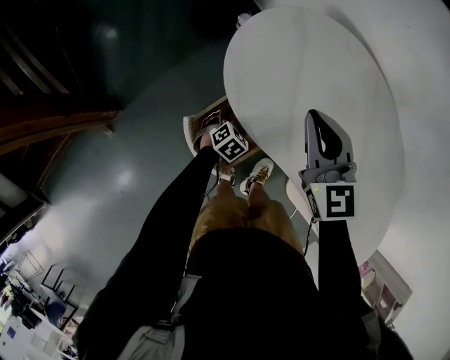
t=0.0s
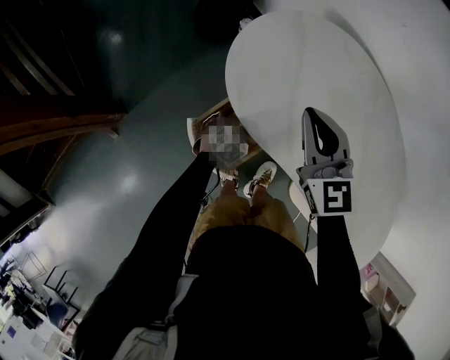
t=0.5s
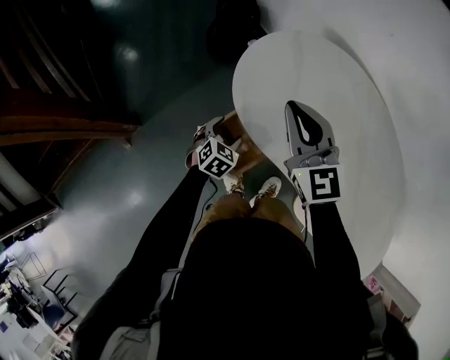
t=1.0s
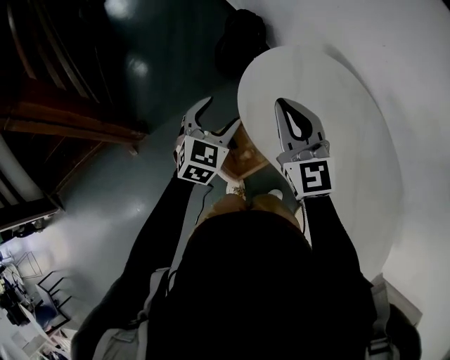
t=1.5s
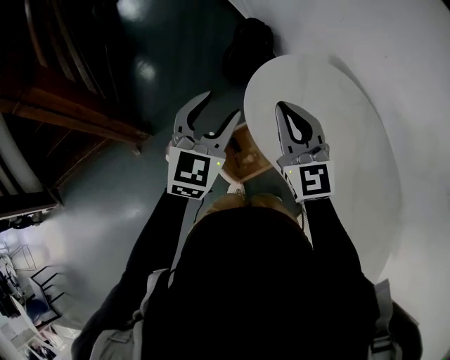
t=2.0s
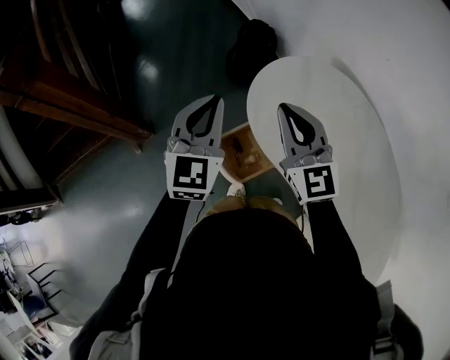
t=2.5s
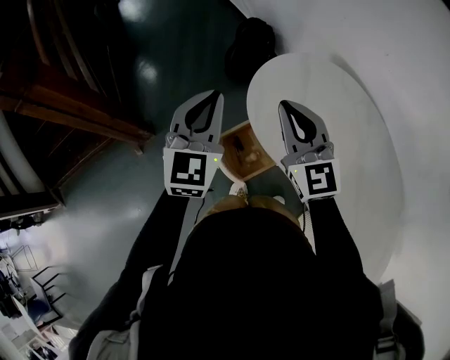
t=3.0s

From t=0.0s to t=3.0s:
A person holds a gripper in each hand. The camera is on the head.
From t=0.0s to t=1.5s: The left gripper travels upward by roughly 30 cm, and angles its fingers upward, by about 30 degrees, while the right gripper travels upward and to the left by roughly 10 cm.
From t=1.5s to t=3.0s: The left gripper goes about 15 cm upward, changes its angle by about 20 degrees, and closes up.

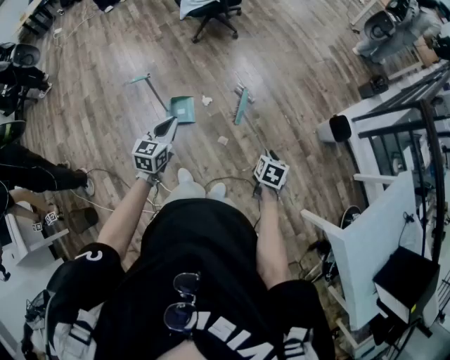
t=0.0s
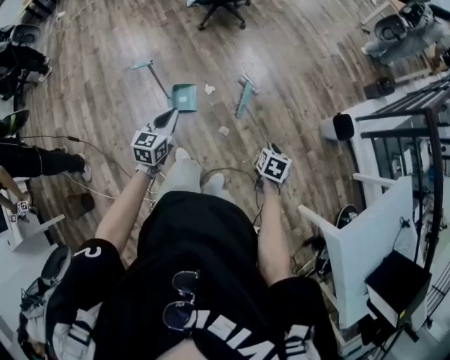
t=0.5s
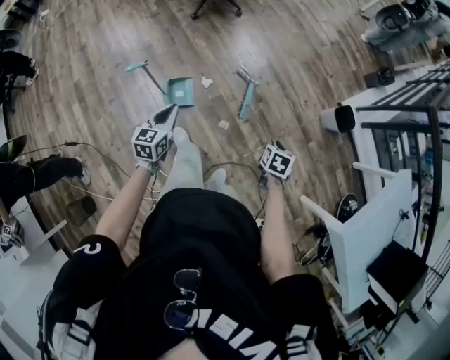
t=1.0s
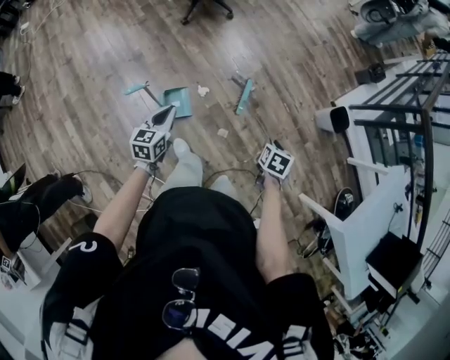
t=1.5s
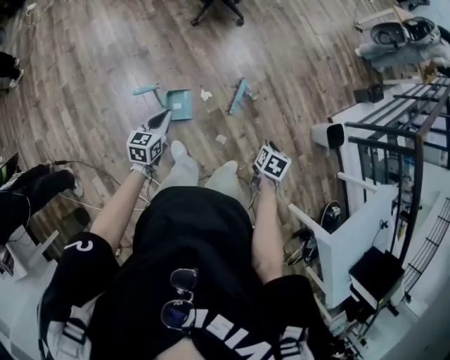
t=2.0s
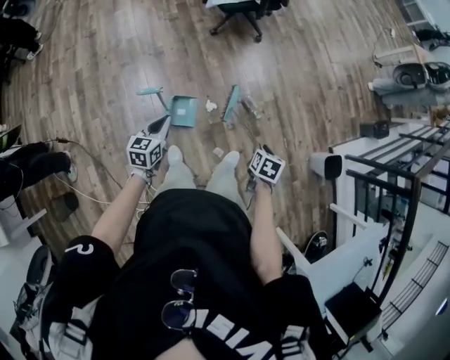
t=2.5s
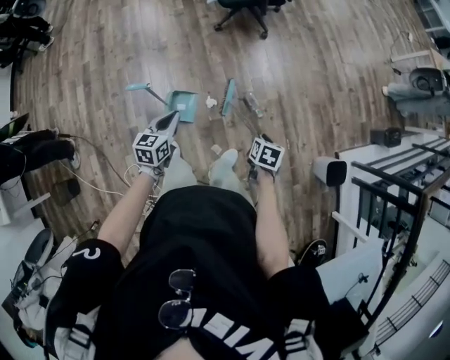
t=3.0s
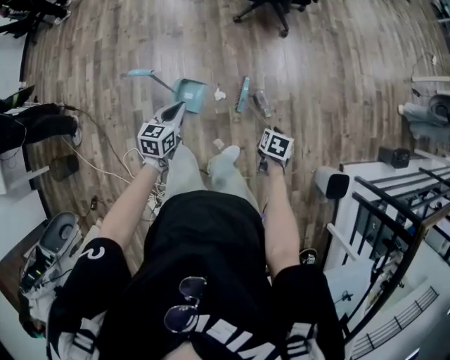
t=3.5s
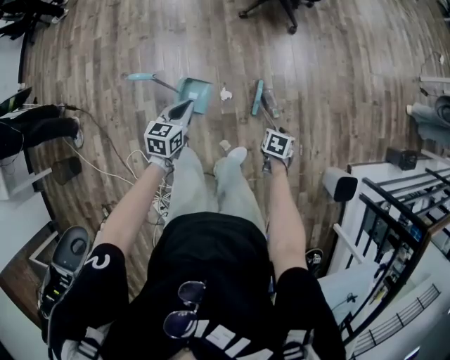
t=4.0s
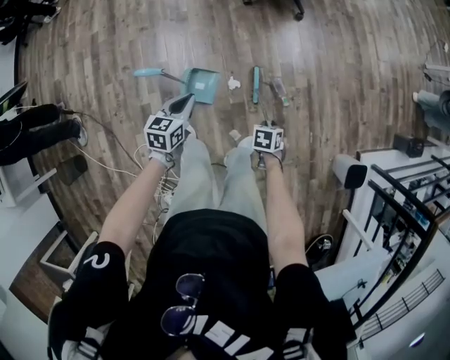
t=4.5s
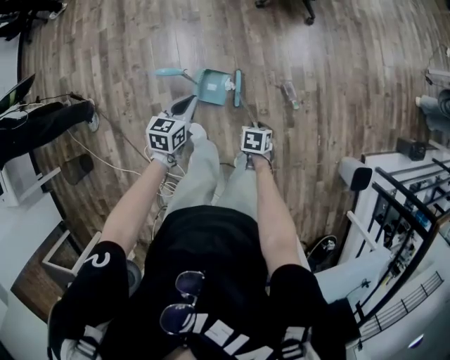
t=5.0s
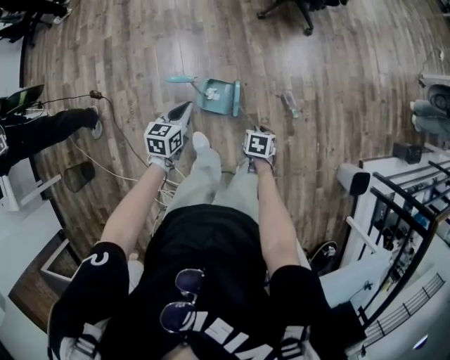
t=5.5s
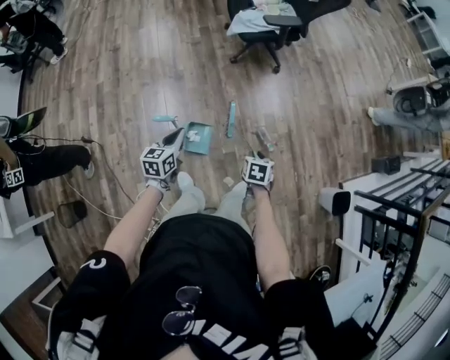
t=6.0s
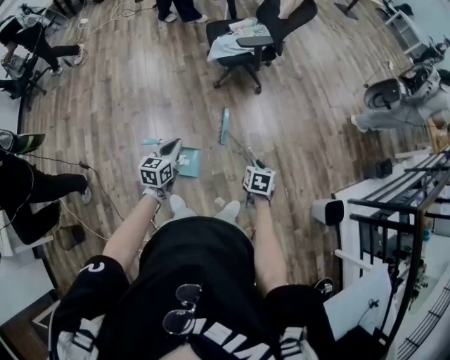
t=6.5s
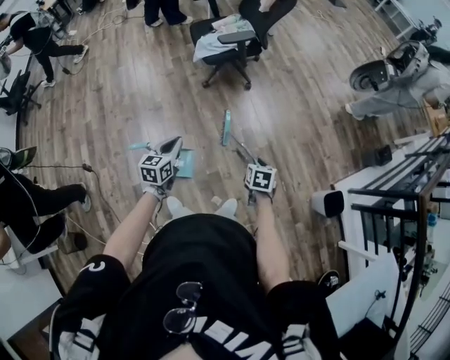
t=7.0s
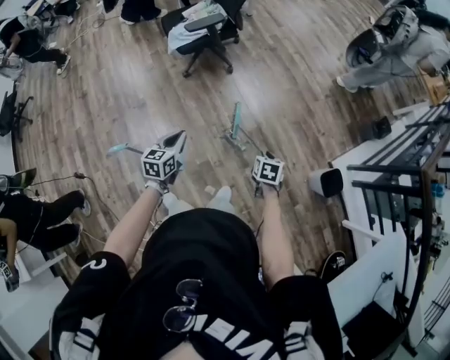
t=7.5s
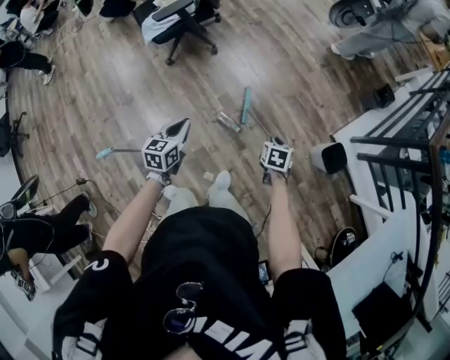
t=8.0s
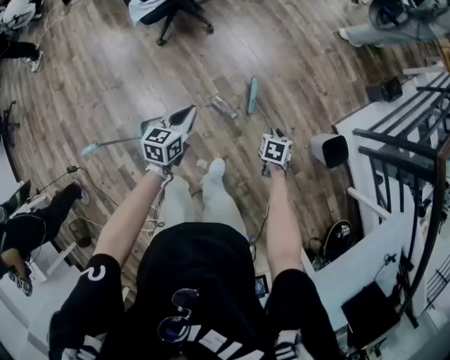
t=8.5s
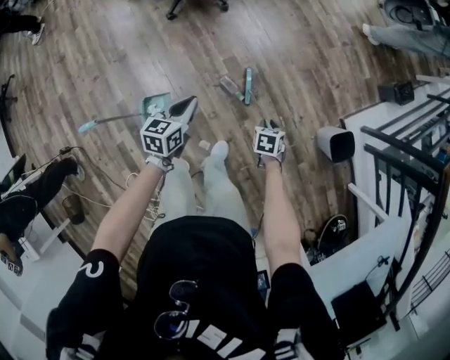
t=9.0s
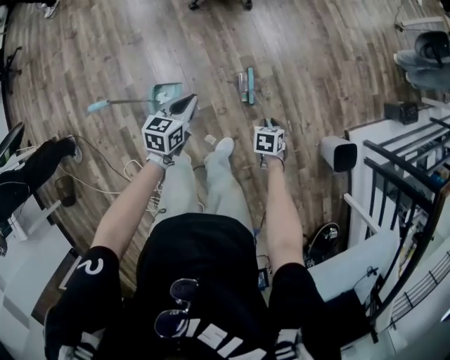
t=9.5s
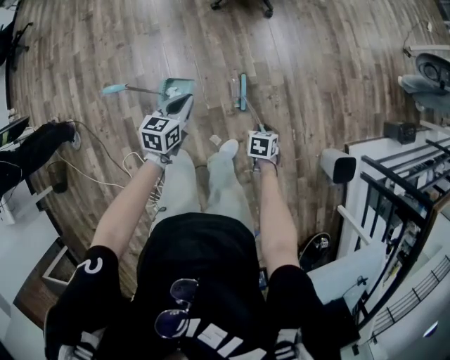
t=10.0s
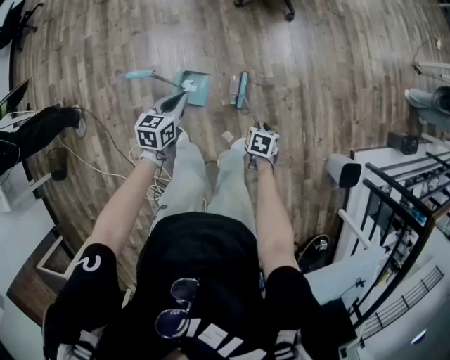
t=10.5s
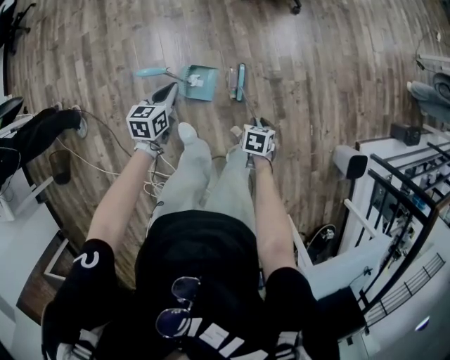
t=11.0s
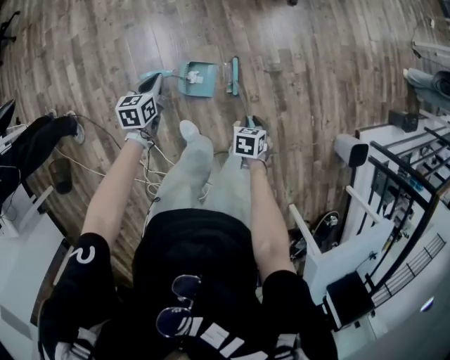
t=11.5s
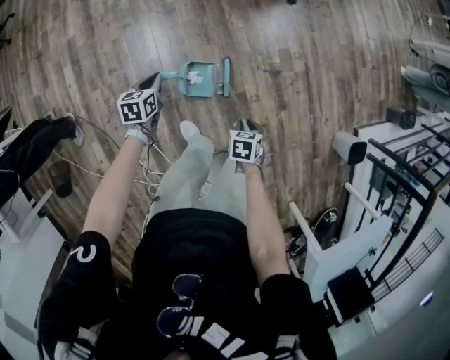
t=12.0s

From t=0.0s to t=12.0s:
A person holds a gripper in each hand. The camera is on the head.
From t=0.0s to t=2.0s: The left gripper heads to the left, forward and downward, covering some 30 cm. Meanwhile the right gripper goes about 25 cm to the left and forward.
From t=2.0s to t=4.0s: The right gripper changes place by some 30 cm, and turns by roughly 30 degrees. The left gripper shifts by approximately 20 cm.
From t=4.0s to t=6.0s: The right gripper moves approximately 20 cm. The left gripper moves approximately 15 cm.
From t=6.0s to t=8.0s: The pair of grippers is taken to the right, approximately 40 cm. The left gripper changes its angle by about 20 degrees. The right gripper turns by some 20 degrees.
From t=8.0s to t=10.0s: The grippers both shift to the left, downward and backward by some 25 cm. The right gripper changes its angle by approximately 30 degrees.
From t=10.0s to t=12.0s: The grippers both shift to the left by roughly 35 cm.

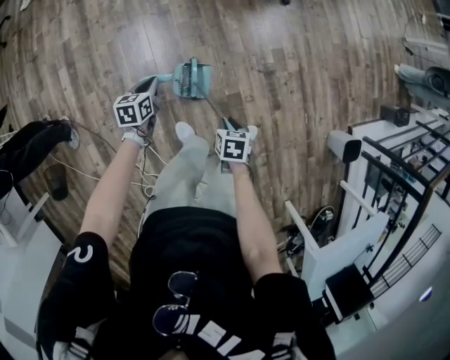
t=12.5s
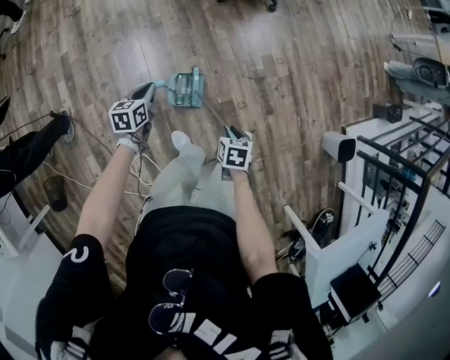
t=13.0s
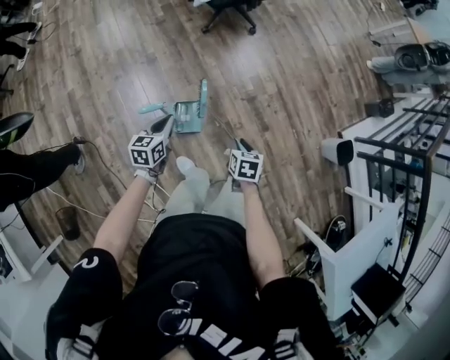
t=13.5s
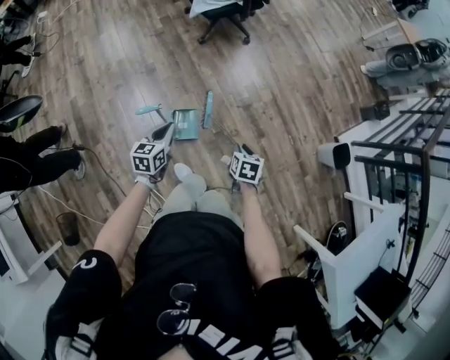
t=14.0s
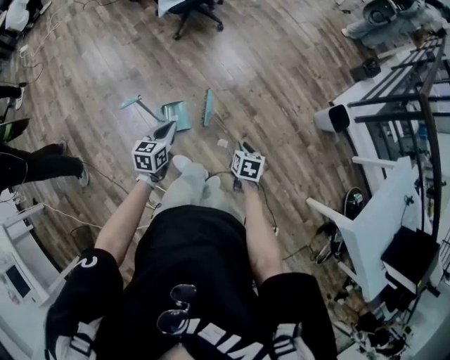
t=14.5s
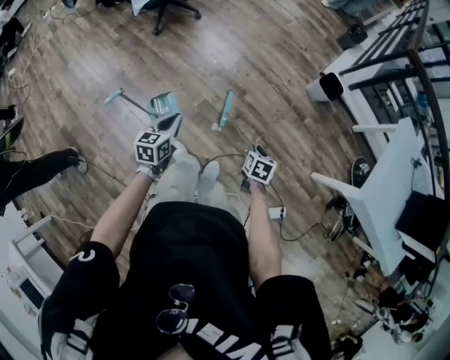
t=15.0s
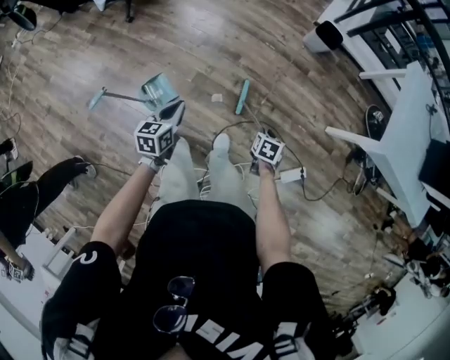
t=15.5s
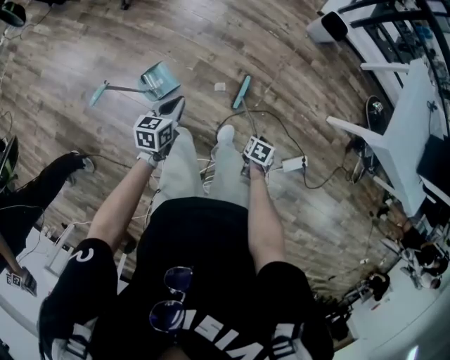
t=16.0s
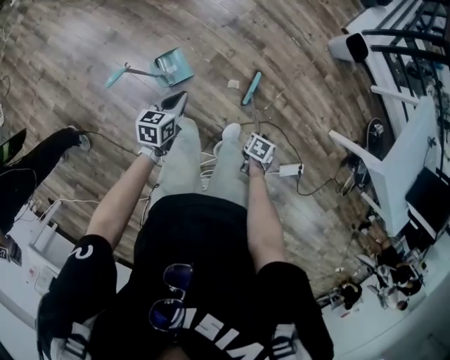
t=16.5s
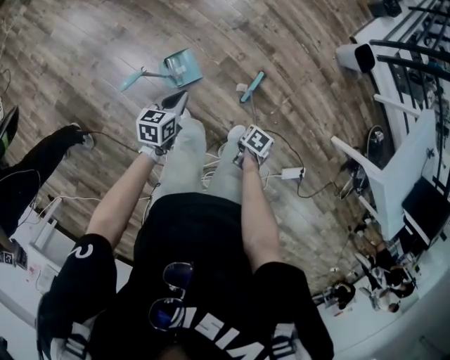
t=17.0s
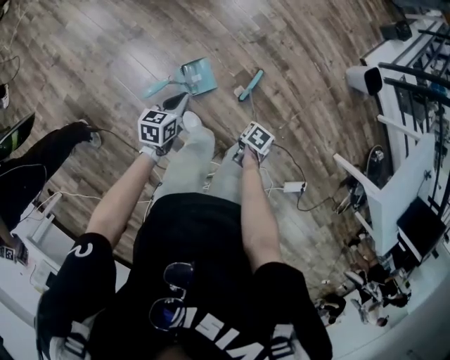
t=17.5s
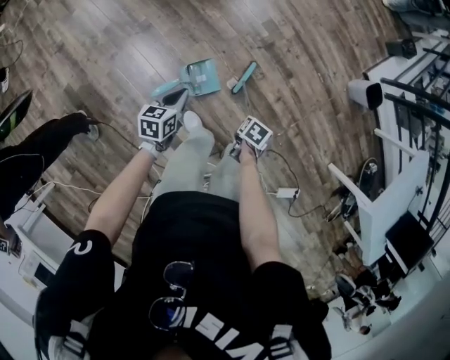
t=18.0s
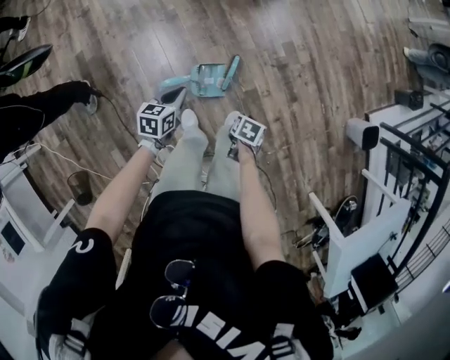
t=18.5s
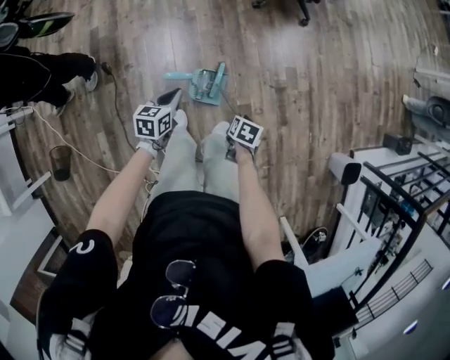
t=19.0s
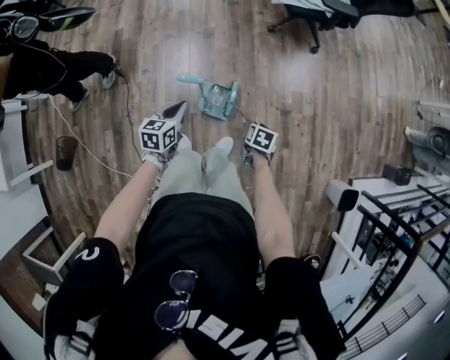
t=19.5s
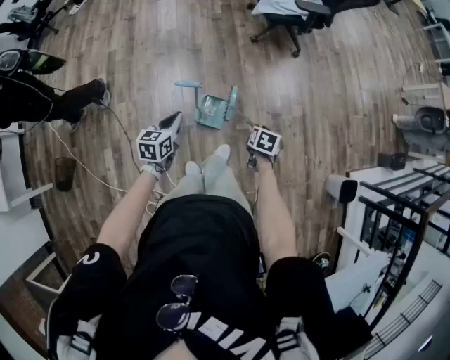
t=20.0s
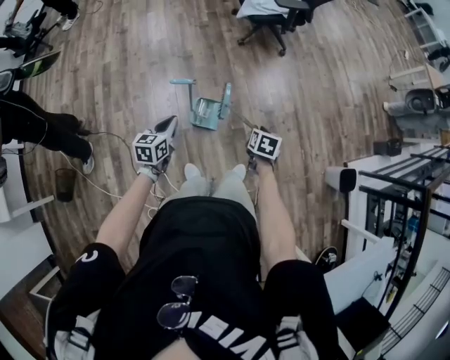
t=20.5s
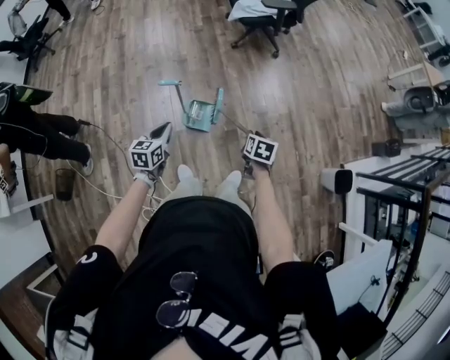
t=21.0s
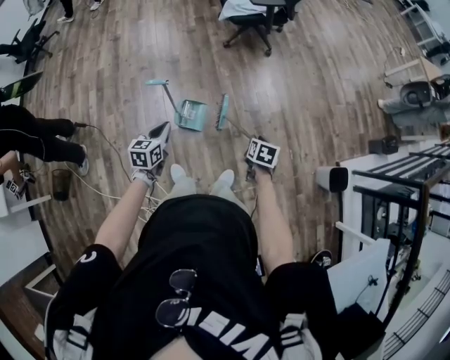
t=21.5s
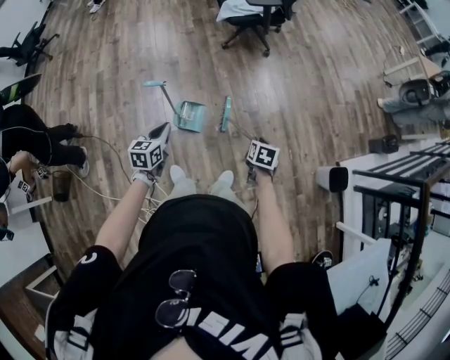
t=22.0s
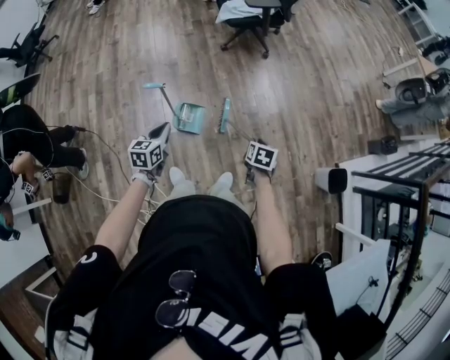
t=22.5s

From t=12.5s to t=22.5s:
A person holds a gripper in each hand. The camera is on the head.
From t=12.5s to t=14.5s: The left gripper changes place by some 35 cm, and rotates roughly 30 degrees. Meanwhile the right gripper moves approximately 30 cm, and changes its angle by roughly 30 degrees.
From t=14.5s to t=16.5s: The left gripper shifts about 10 cm downward, and swivels roughly 20 degrees; the right gripper is displaced downward by approximately 15 cm, and swivels approximately 40 degrees.
From t=16.5s to t=18.5s: The right gripper changes place by approximately 40 cm, and changes its angle by approximately 30 degrees. Meanwhile the left gripper ends up roughly 25 cm from where it was, and swivels roughly 30 degrees.
From t=18.5s to t=20.5s: The right gripper moves upward and to the right, about 20 cm, and turns by about 30 degrees. The left gripper travels backward and upward by some 25 cm, and swivels approximately 20 degrees.
From t=20.5s to t=22.5s: Both grippers travel together to the right, approximately 15 cm.

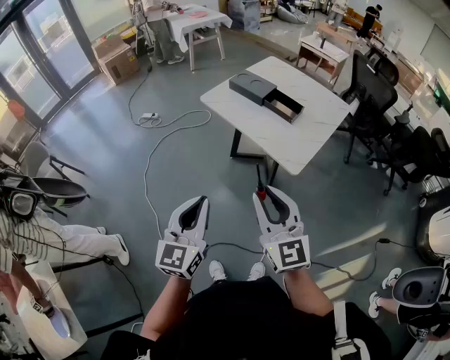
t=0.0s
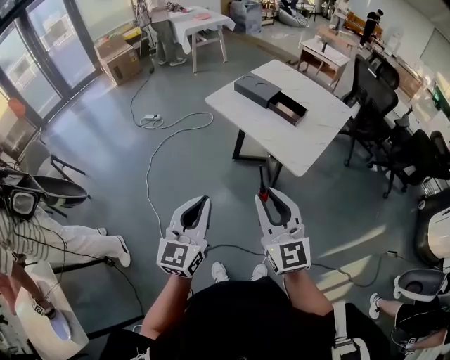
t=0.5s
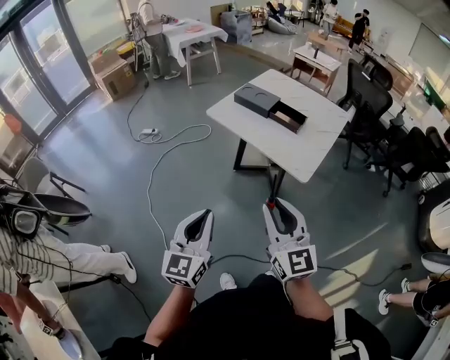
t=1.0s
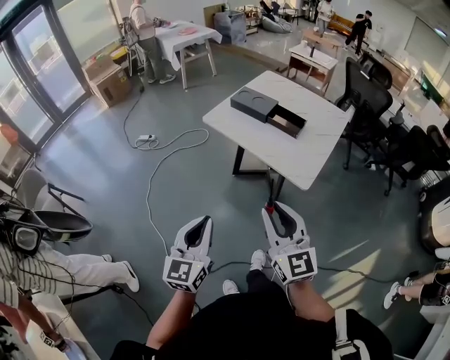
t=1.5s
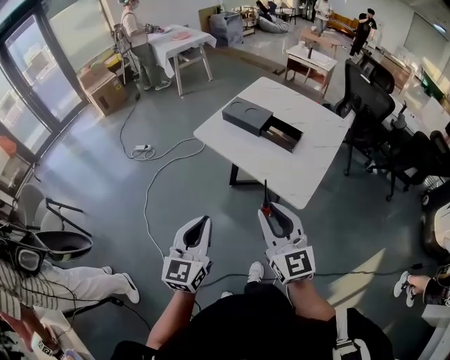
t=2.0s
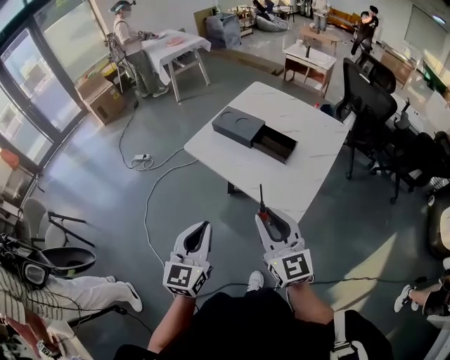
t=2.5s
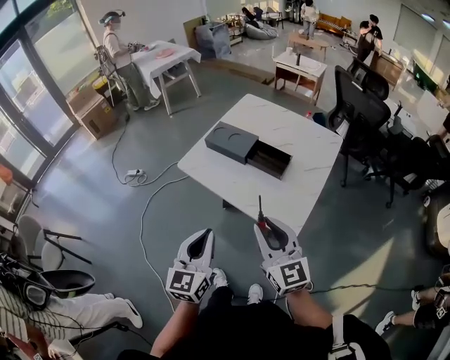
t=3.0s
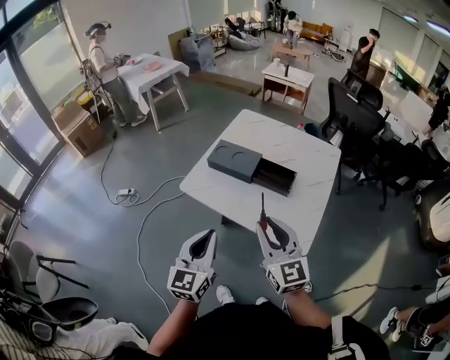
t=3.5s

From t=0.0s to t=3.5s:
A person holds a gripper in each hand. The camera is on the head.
From t=0.0s to t=2.0s: The two grippers go approximately 15 cm forward.
From t=2.0s to t=3.5s: The grippers both shift forward by some 20 cm.
